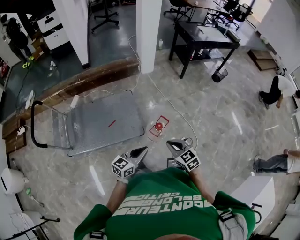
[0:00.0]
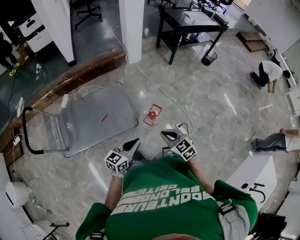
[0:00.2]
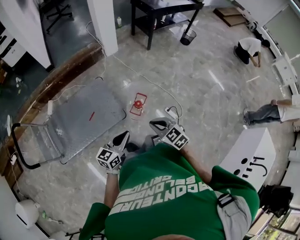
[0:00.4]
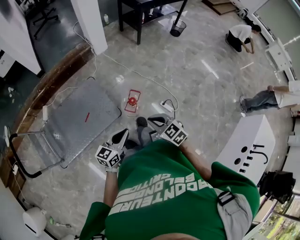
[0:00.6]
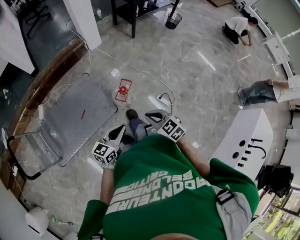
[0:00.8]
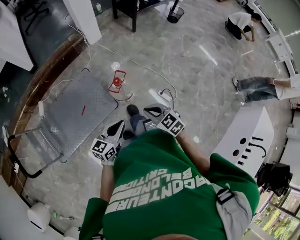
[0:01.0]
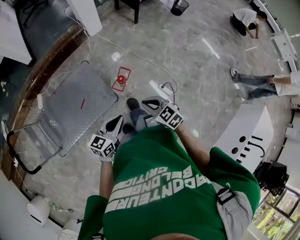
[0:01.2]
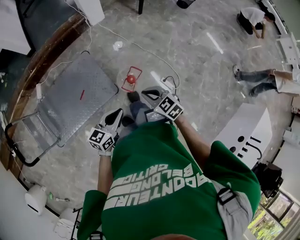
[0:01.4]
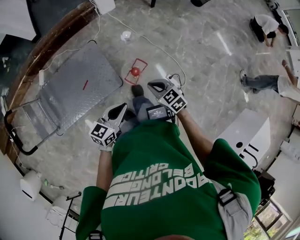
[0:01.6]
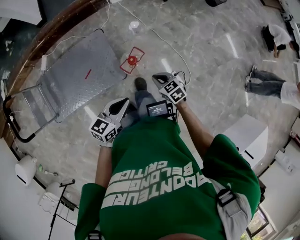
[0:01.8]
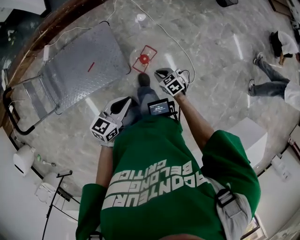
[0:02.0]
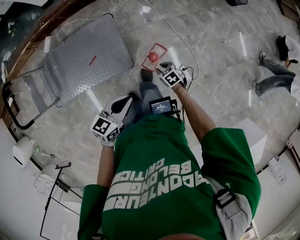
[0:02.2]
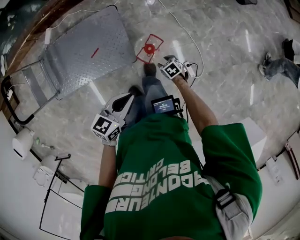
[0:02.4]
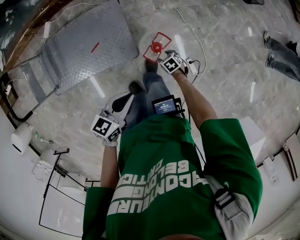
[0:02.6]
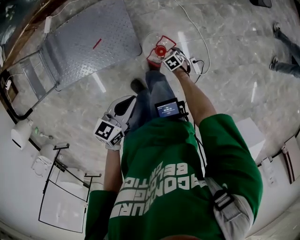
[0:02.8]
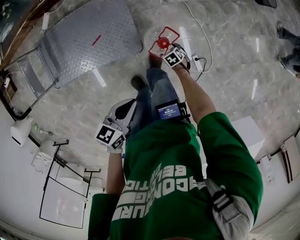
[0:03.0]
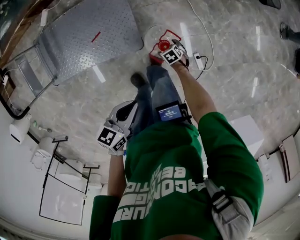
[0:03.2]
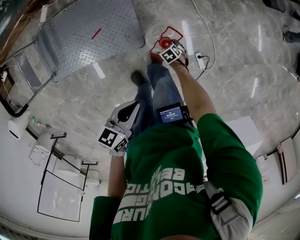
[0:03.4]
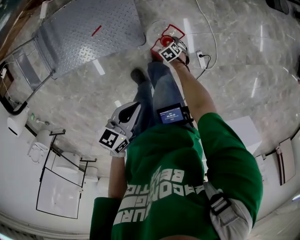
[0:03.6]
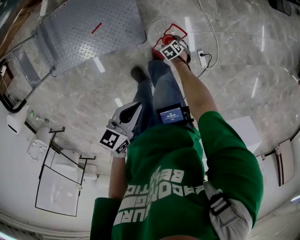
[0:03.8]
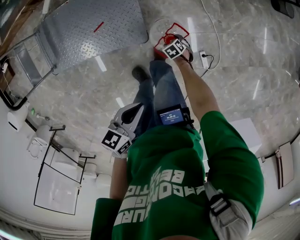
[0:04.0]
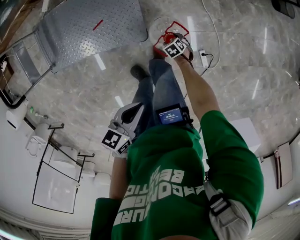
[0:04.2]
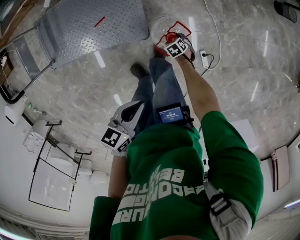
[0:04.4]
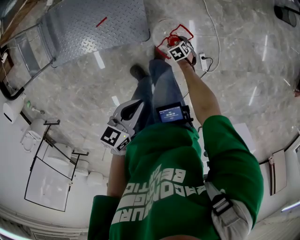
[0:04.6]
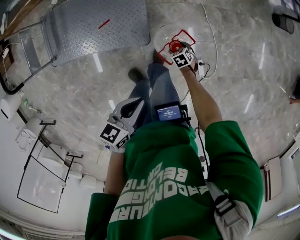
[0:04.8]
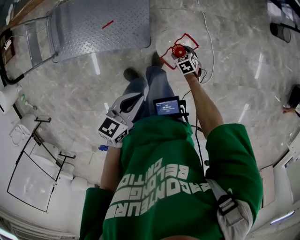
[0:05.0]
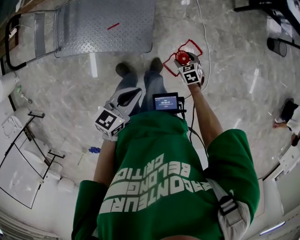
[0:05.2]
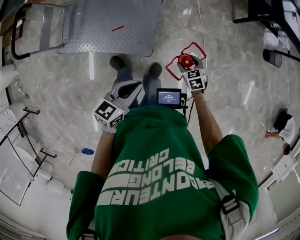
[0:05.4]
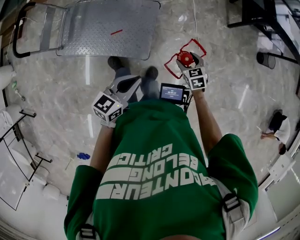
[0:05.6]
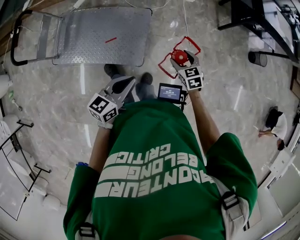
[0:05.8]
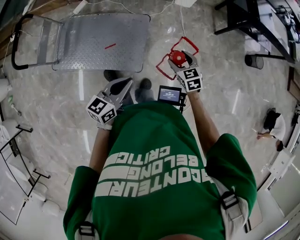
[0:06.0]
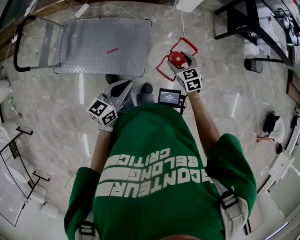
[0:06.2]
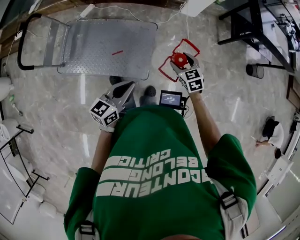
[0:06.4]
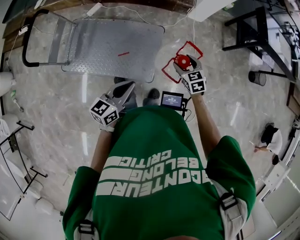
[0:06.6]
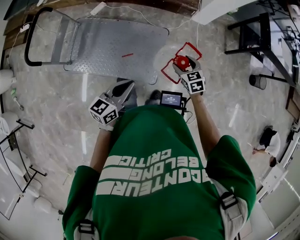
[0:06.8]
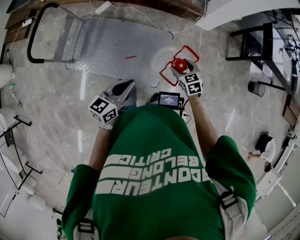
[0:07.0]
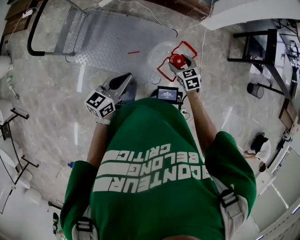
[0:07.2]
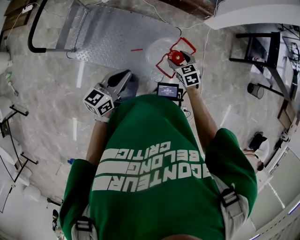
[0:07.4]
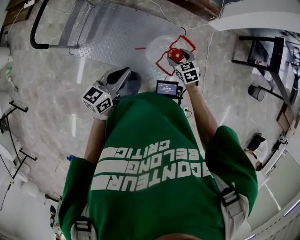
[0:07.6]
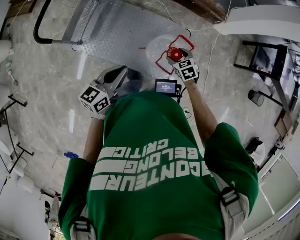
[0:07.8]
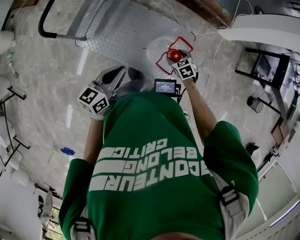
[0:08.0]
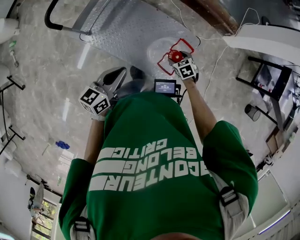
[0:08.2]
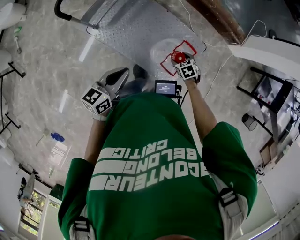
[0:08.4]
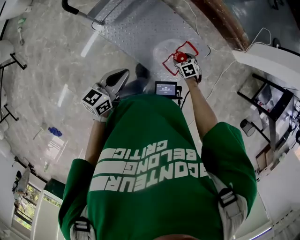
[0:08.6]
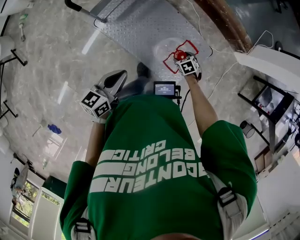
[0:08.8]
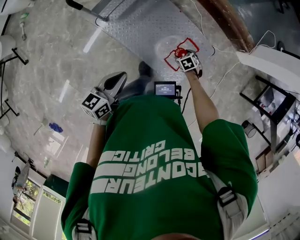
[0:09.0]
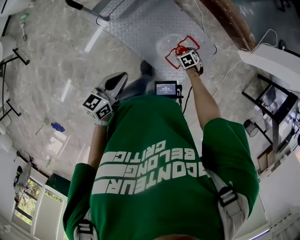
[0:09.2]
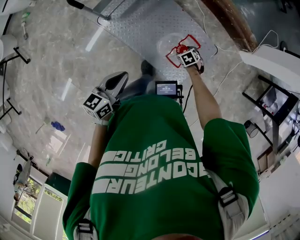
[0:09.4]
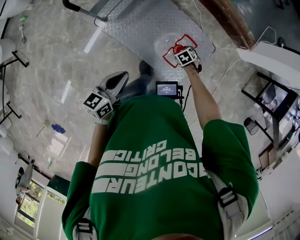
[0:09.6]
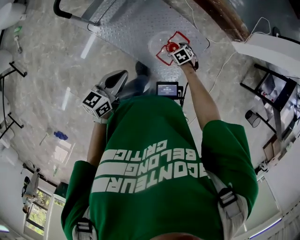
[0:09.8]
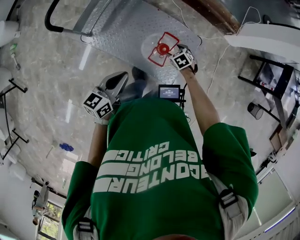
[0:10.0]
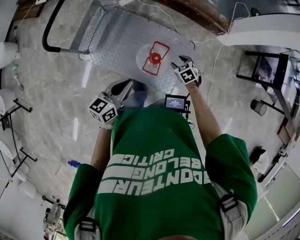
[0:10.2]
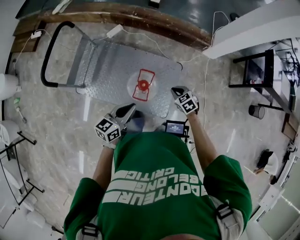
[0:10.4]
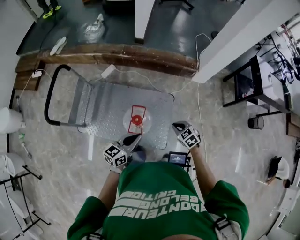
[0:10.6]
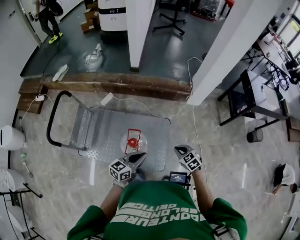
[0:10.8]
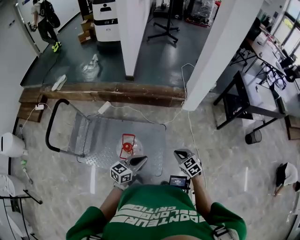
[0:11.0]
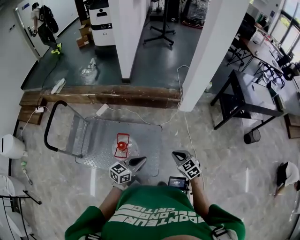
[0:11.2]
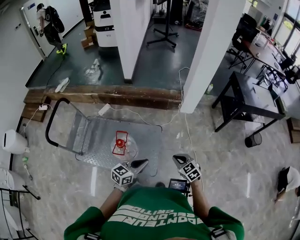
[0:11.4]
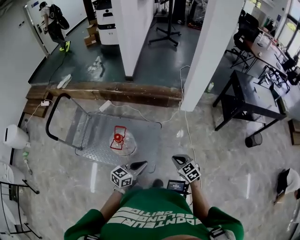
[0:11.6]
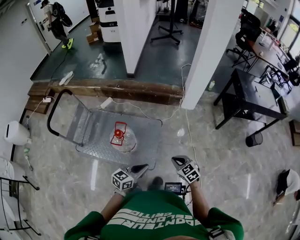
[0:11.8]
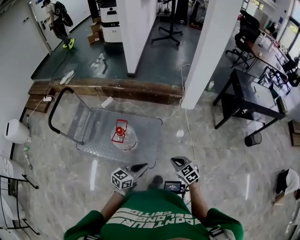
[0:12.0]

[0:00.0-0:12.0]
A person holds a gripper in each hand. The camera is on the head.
0:00.0 to 0:01.6: The left gripper heads forward, covering some 10 cm, while the right gripper shifts some 15 cm forward and downward.
0:01.6 to 0:03.0: The left gripper moves downward, about 5 cm, and rotates about 30 degrees. The right gripper travels downward by about 40 cm, points its fingers some 30 degrees further downward, and opens.
0:03.0 to 0:04.4: The right gripper is displaced downward by roughly 5 cm.
0:04.4 to 0:06.0: The right gripper travels upward by some 40 cm, and tilts its fingers roughly 30 degrees upward, while the left gripper moves upward, some 10 cm, and turns by some 30 degrees.
0:06.0 to 0:07.6: The left gripper shifts about 30 cm to the left; the right gripper goes about 30 cm to the left and forward.
0:07.6 to 0:09.0: The left gripper ends up roughly 15 cm from where it was, and turns by roughly 30 degrees. The right gripper shifts about 15 cm downward, and turns by some 30 degrees.
0:09.0 to 0:10.4: The right gripper heads upward, covering about 15 cm, rotates some 20 degrees, and closes up. Meanwhile the left gripper changes place by roughly 15 cm, and turns by about 30 degrees.
0:10.4 to 0:12.0: The left gripper travels to the right and backward by approximately 35 cm. Meanwhile the right gripper is displaced to the right, backward and upward by approximately 35 cm, and rotates some 20 degrees.

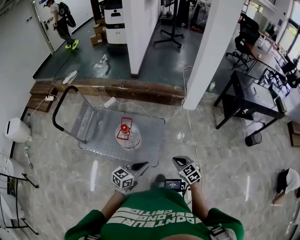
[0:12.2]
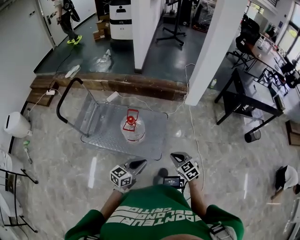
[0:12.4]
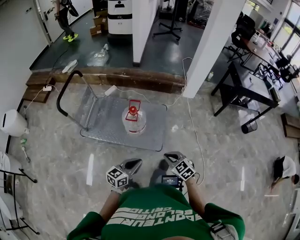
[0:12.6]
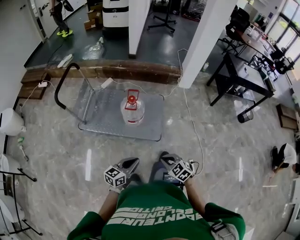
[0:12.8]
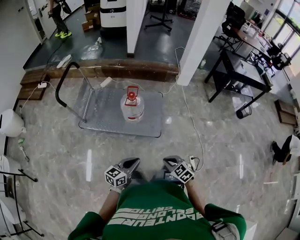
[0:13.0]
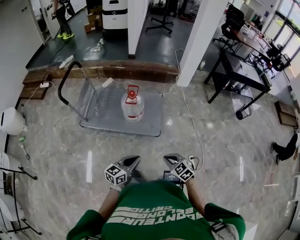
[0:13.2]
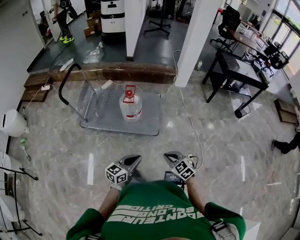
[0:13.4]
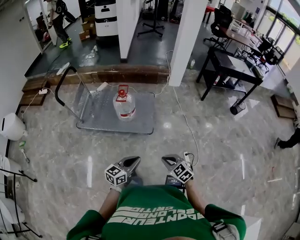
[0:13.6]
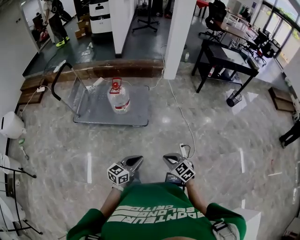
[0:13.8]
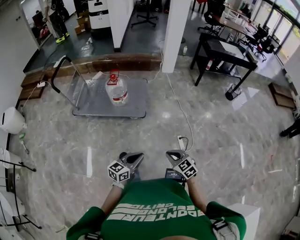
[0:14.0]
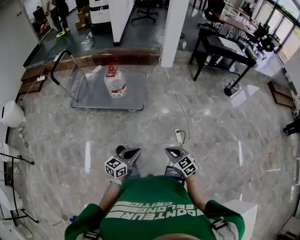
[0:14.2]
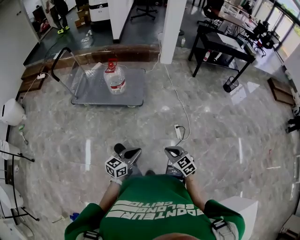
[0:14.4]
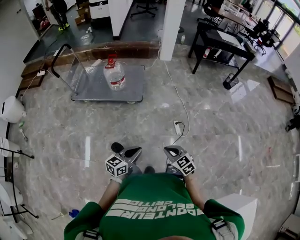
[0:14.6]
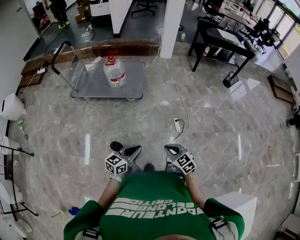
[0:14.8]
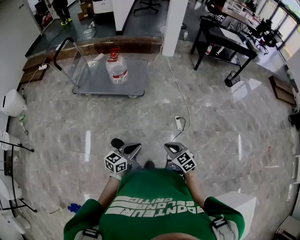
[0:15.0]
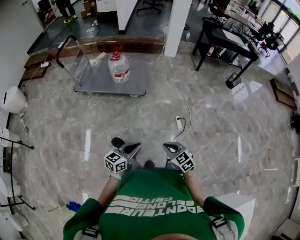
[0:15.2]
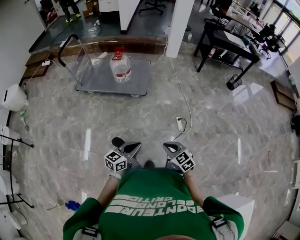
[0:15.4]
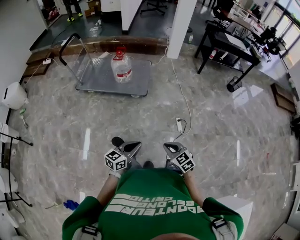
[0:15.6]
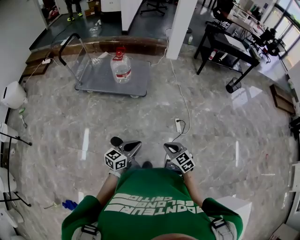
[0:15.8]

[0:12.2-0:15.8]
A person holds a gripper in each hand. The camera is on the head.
0:12.2 to 0:14.0: The two grippers travel together, backward, approximately 50 cm.
0:14.0 to 0:15.8: Both grippers move backward, some 15 cm.

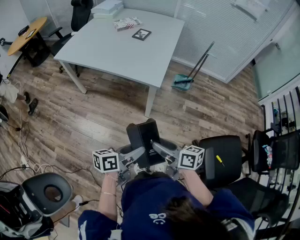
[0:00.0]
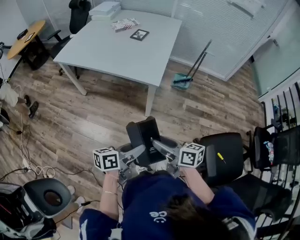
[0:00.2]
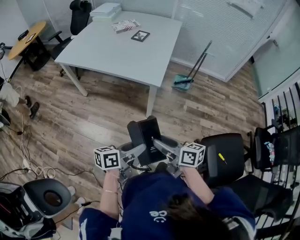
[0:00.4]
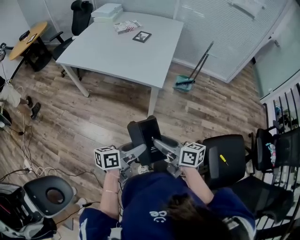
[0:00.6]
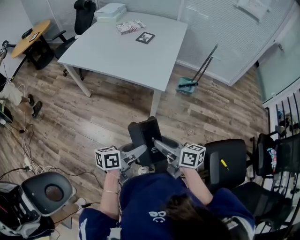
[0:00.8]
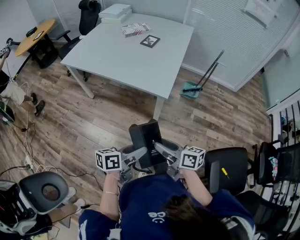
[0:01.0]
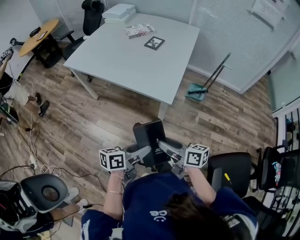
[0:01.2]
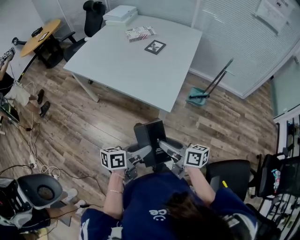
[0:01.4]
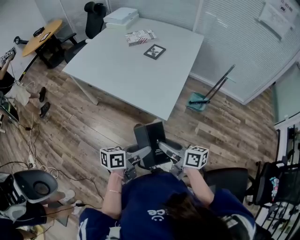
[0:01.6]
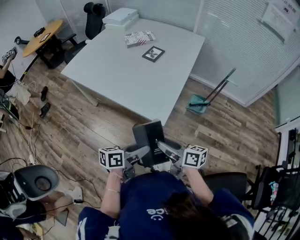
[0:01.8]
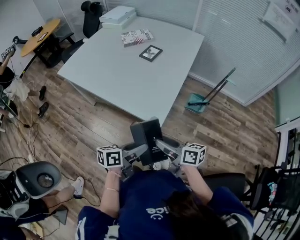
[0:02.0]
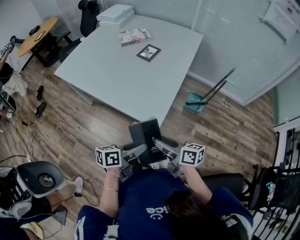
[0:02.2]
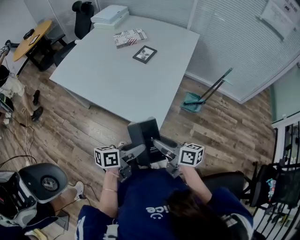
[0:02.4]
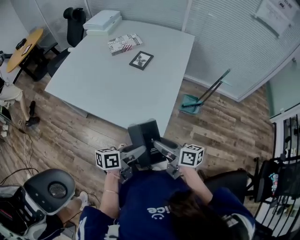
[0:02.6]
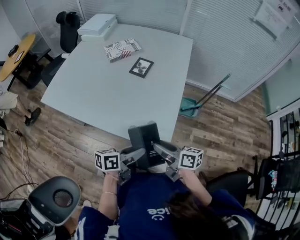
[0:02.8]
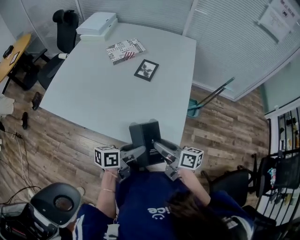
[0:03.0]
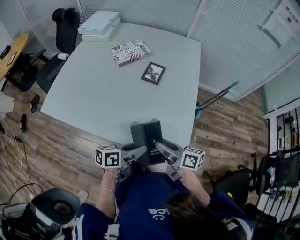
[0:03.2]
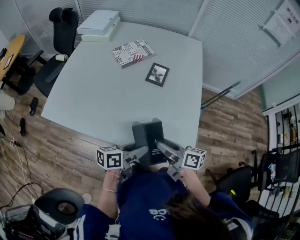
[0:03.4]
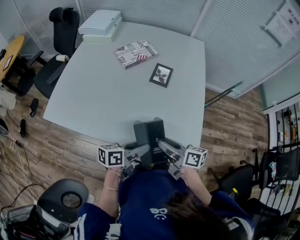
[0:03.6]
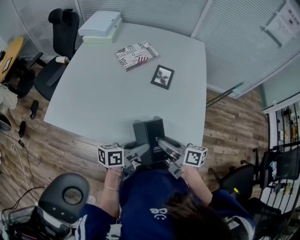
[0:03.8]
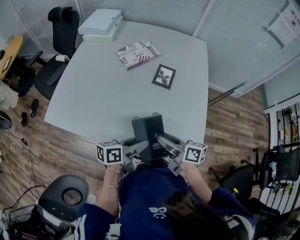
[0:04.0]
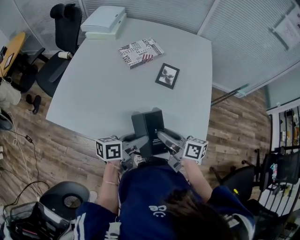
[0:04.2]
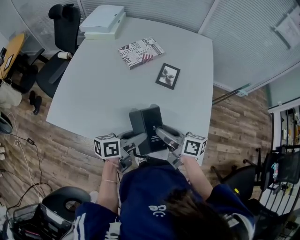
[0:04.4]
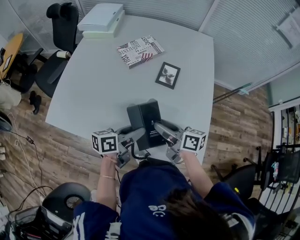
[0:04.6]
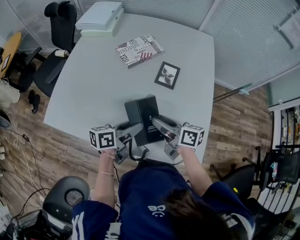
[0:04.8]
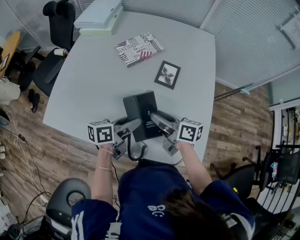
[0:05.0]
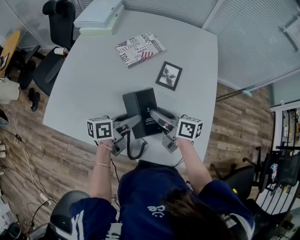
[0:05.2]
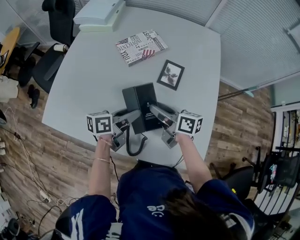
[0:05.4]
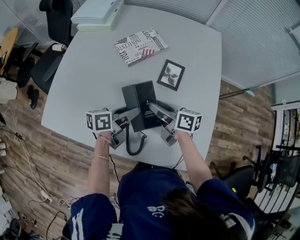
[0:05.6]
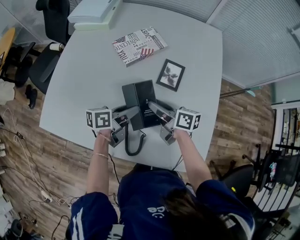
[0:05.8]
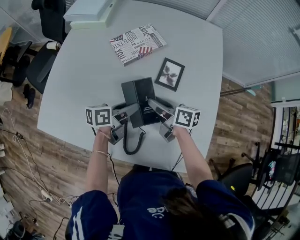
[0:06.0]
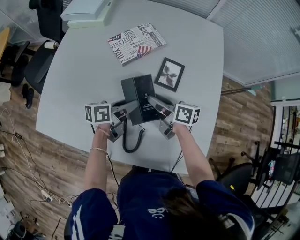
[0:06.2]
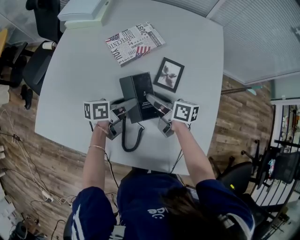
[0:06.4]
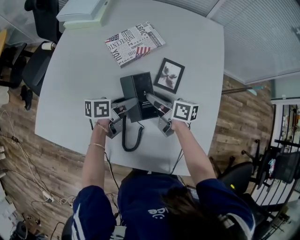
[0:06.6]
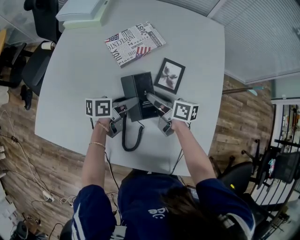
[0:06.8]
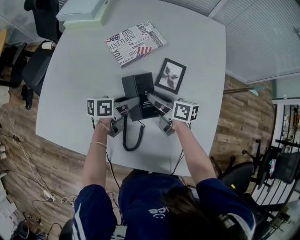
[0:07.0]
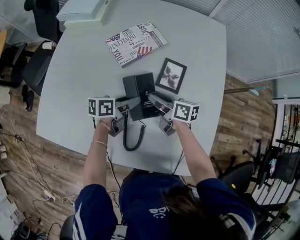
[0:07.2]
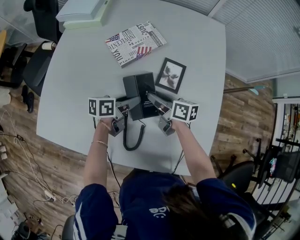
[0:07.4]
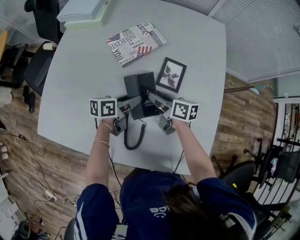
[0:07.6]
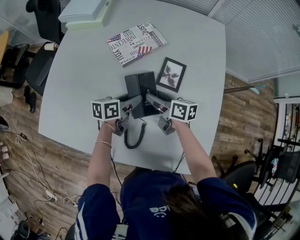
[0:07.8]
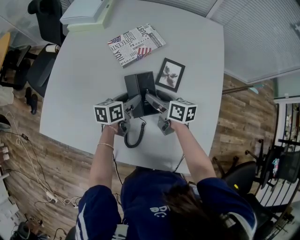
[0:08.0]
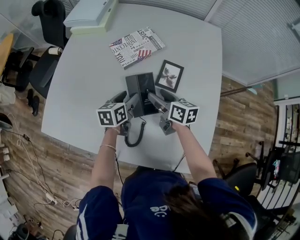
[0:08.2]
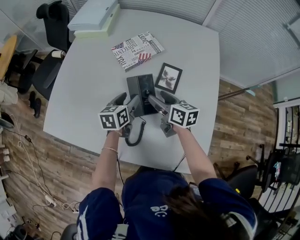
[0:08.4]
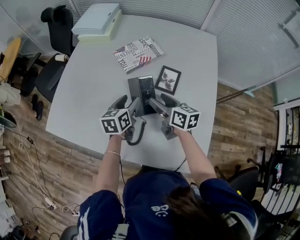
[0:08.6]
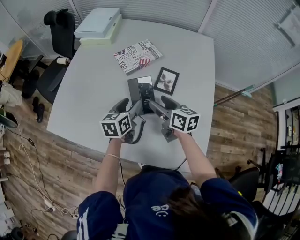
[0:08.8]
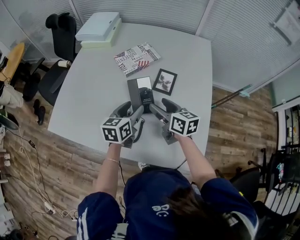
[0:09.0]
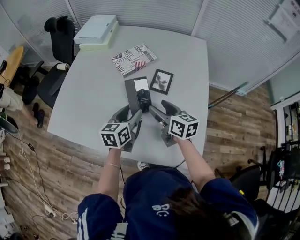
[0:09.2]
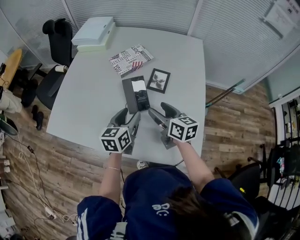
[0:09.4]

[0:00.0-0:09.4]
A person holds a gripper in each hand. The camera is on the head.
0:00.0 to 0:01.6: Both grippers travel together forward, some 20 cm.
0:01.6 to 0:03.2: Both grippers move forward and to the left, about 30 cm.
0:03.2 to 0:04.8: Both grippers travel together forward and to the left, some 20 cm.
0:04.8 to 0:06.2: The two grippers go roughly 15 cm forward and downward.
0:06.2 to 0:07.8: The grippers make only small movements.
0:07.8 to 0:09.4: The grippers both shift backward and upward by about 20 cm. The right gripper swivels approximately 20 degrees; the left gripper turns by some 30 degrees.
